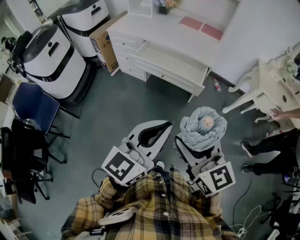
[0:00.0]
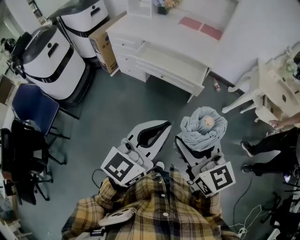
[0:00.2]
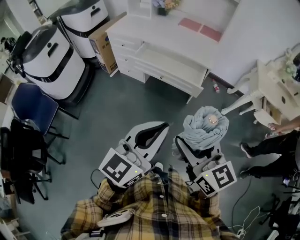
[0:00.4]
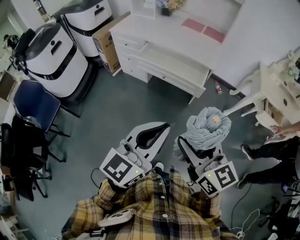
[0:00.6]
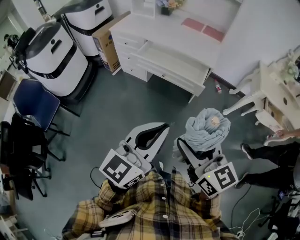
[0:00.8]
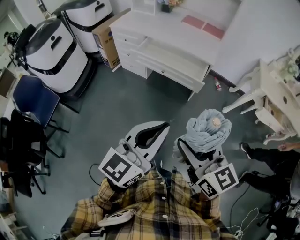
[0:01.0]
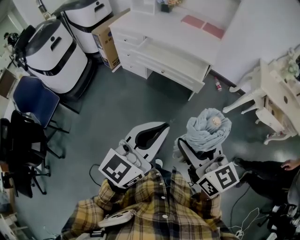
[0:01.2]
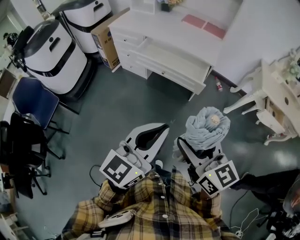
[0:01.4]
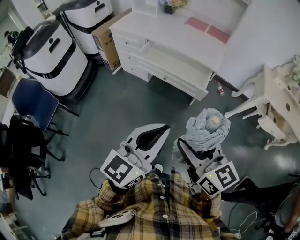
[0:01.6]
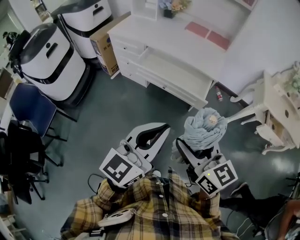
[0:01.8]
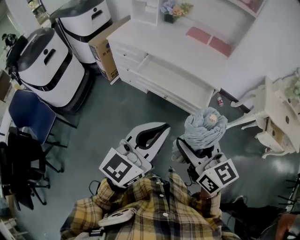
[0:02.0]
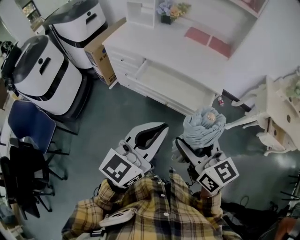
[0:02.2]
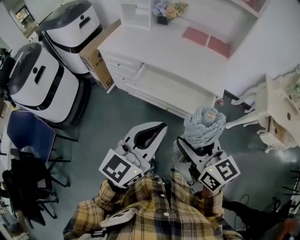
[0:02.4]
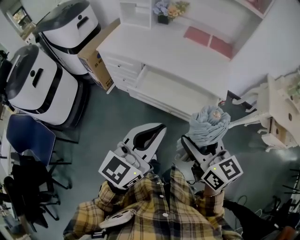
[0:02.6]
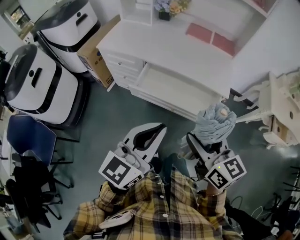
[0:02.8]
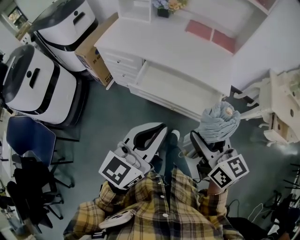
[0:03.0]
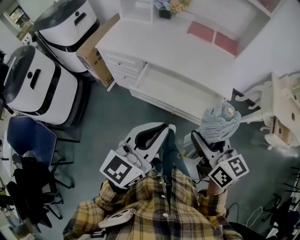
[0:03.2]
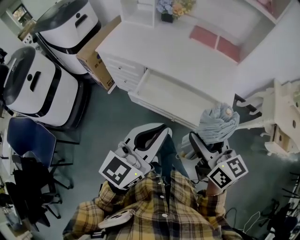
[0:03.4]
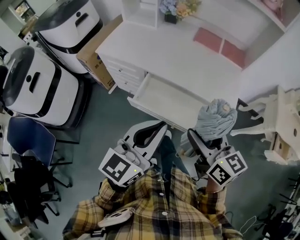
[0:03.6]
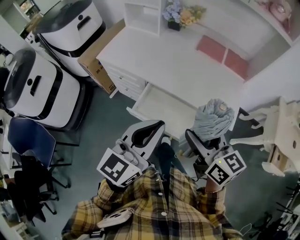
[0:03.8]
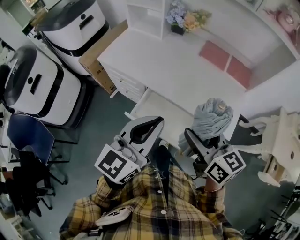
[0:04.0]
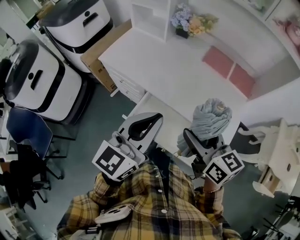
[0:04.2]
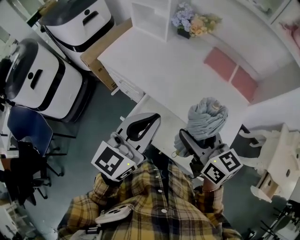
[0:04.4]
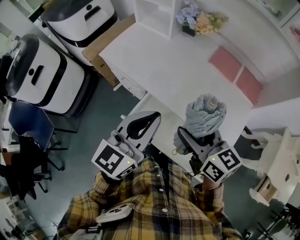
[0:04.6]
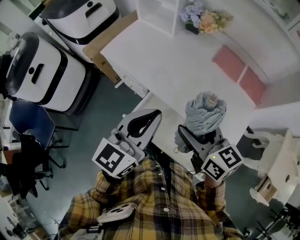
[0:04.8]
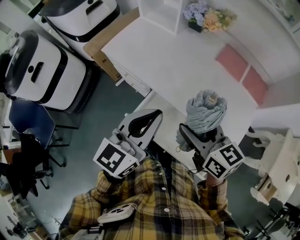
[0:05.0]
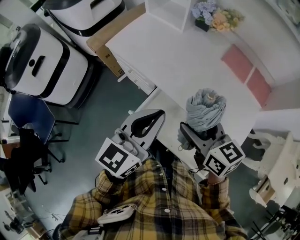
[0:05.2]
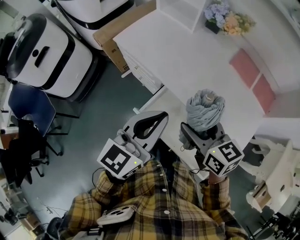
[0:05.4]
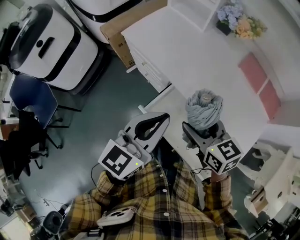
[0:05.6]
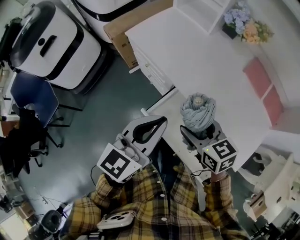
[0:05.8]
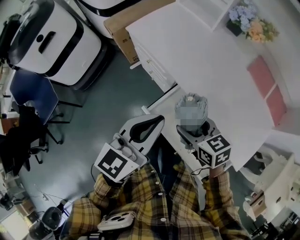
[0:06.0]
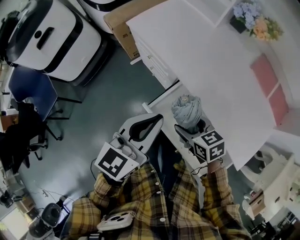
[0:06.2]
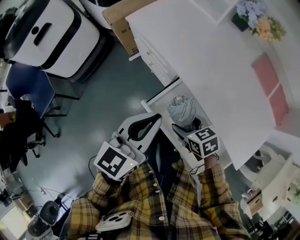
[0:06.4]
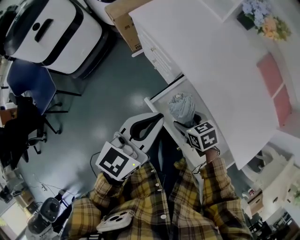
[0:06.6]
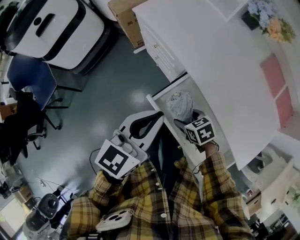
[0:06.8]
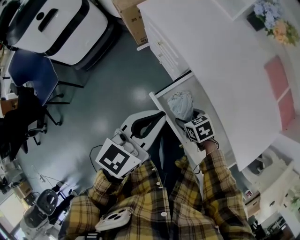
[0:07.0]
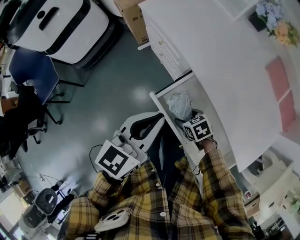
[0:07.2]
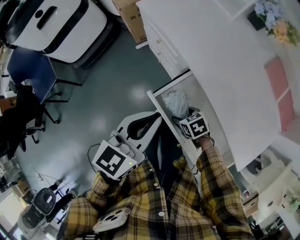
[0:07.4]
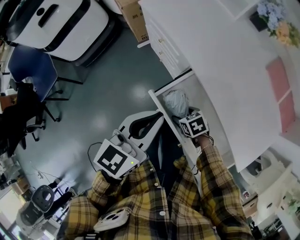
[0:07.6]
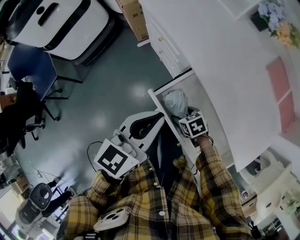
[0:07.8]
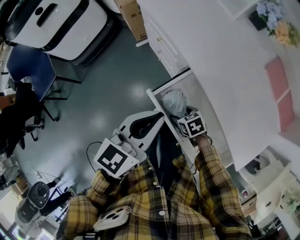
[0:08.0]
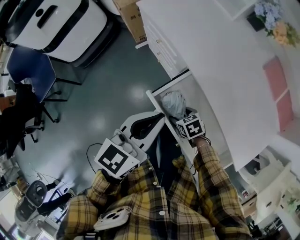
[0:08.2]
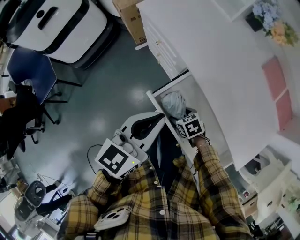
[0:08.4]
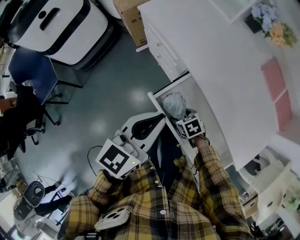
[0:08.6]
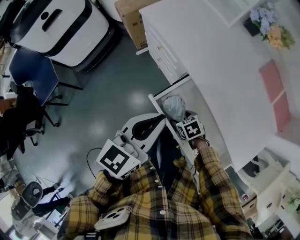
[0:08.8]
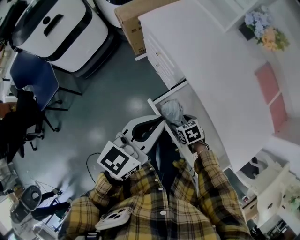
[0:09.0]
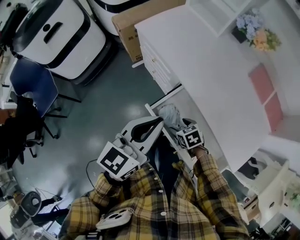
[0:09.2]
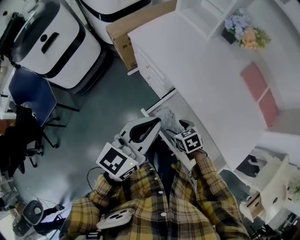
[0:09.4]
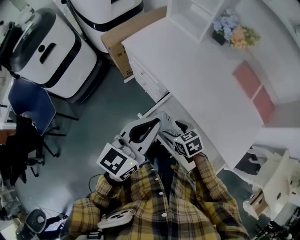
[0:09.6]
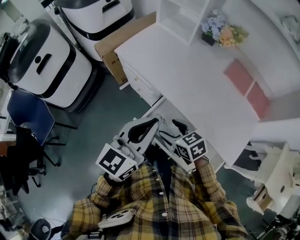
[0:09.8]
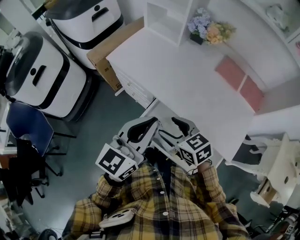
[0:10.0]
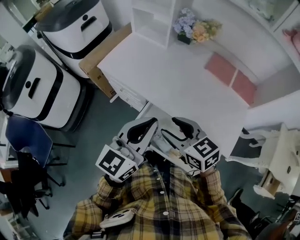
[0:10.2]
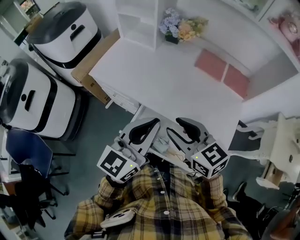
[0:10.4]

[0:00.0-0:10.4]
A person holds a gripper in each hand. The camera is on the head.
0:00.0 to 0:01.4: The grippers stay close to where they were, moving slightly.
0:01.4 to 0:03.0: The right gripper heads forward, covering some 30 cm. Meanwhile the left gripper moves forward and to the left, approximately 35 cm.
0:03.0 to 0:04.4: The two grippers go about 30 cm forward. The right gripper changes its angle by some 20 degrees.
0:04.4 to 0:06.0: The right gripper is displaced downward and to the left by roughly 20 cm, and swivels roughly 30 degrees. The left gripper heads to the left and downward, covering roughly 15 cm.
0:06.0 to 0:07.4: The right gripper shifts roughly 20 cm downward, and changes its angle by roughly 30 degrees. The left gripper goes some 5 cm downward.
0:07.4 to 0:09.0: There are only small adjustments of the grippers.
0:09.0 to 0:10.4: The left gripper changes place by roughly 15 cm, and rotates some 30 degrees. Meanwhile the right gripper travels upward by some 35 cm, points its fingers roughly 40 degrees further upward, and closes.

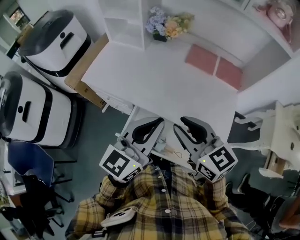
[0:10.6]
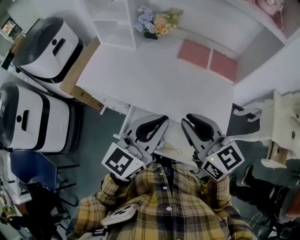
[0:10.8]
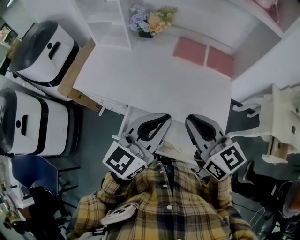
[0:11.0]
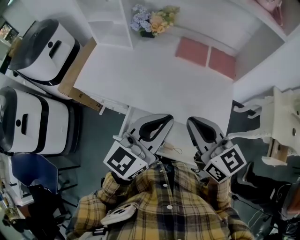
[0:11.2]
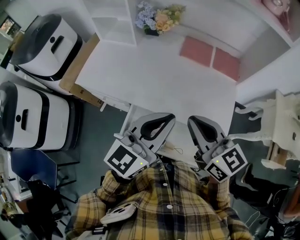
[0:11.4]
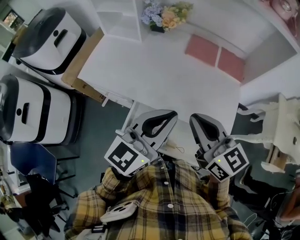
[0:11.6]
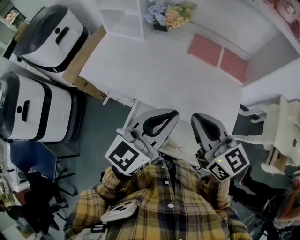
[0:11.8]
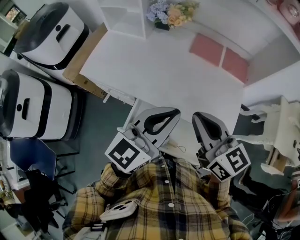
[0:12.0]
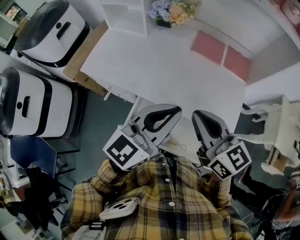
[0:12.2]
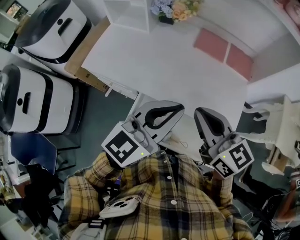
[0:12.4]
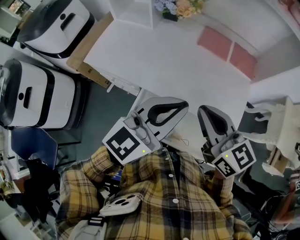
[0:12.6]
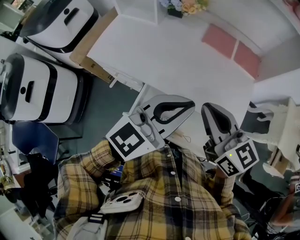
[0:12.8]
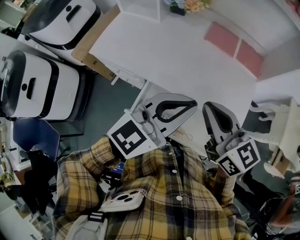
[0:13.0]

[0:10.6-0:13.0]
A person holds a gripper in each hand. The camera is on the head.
0:11.8 to 0:13.0: There are only small adjustments of the grippers.

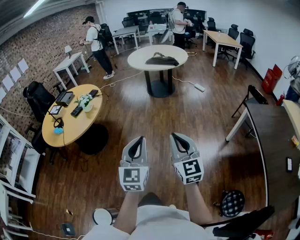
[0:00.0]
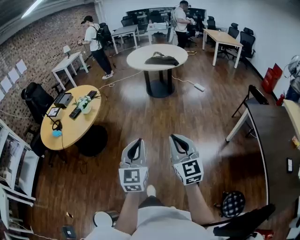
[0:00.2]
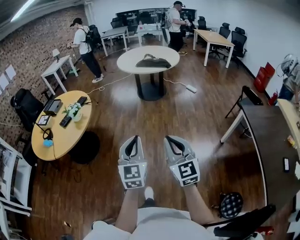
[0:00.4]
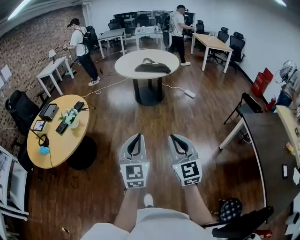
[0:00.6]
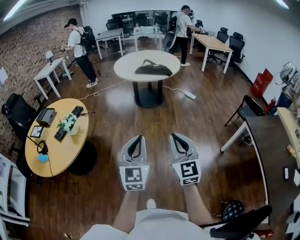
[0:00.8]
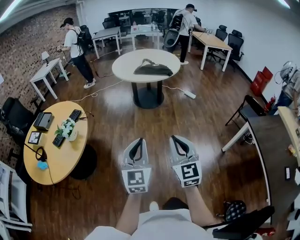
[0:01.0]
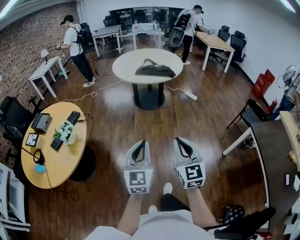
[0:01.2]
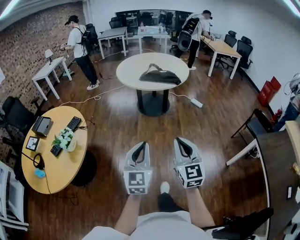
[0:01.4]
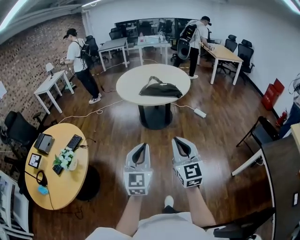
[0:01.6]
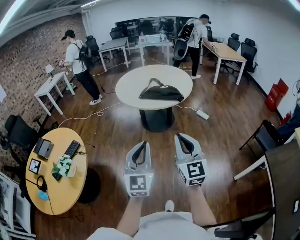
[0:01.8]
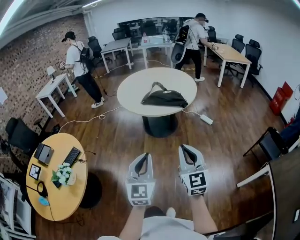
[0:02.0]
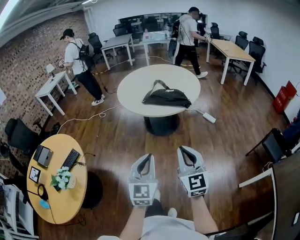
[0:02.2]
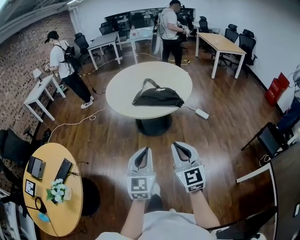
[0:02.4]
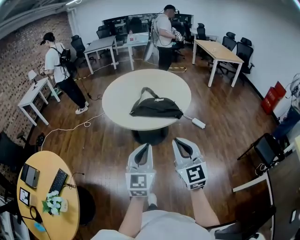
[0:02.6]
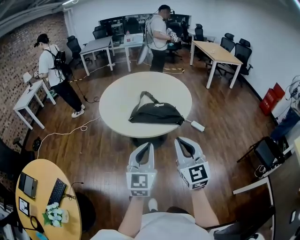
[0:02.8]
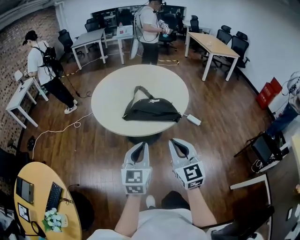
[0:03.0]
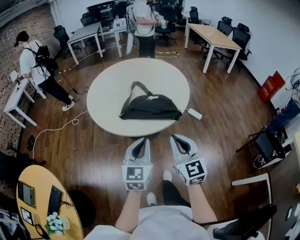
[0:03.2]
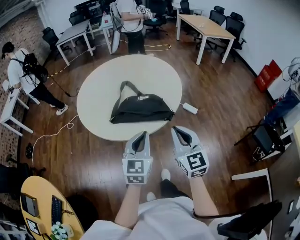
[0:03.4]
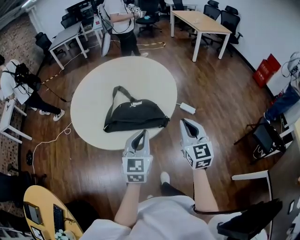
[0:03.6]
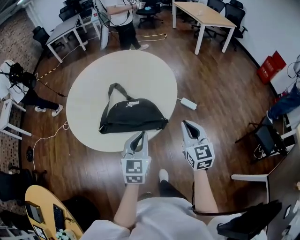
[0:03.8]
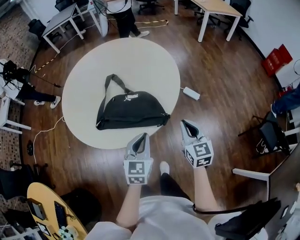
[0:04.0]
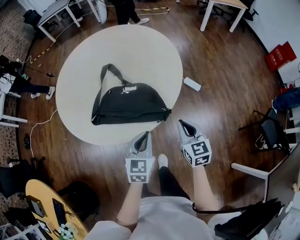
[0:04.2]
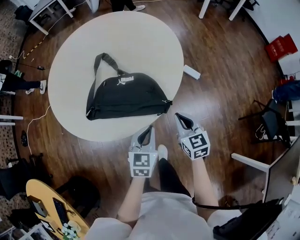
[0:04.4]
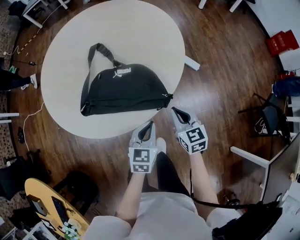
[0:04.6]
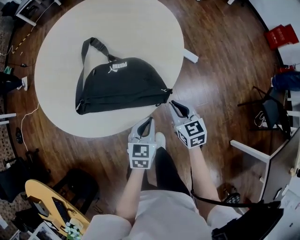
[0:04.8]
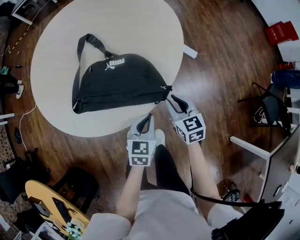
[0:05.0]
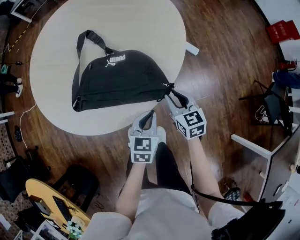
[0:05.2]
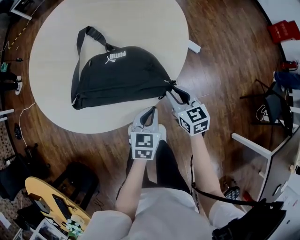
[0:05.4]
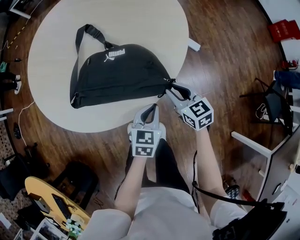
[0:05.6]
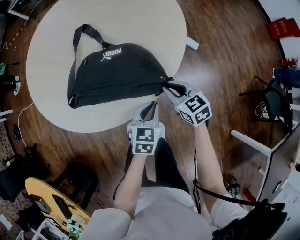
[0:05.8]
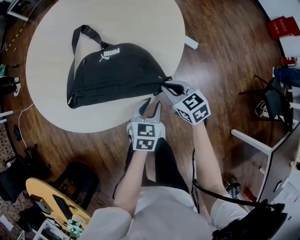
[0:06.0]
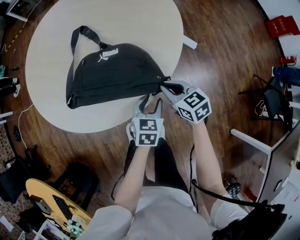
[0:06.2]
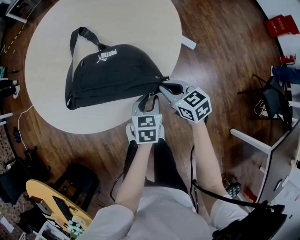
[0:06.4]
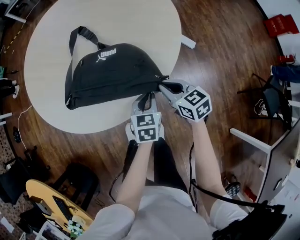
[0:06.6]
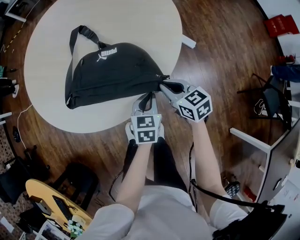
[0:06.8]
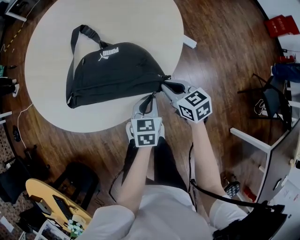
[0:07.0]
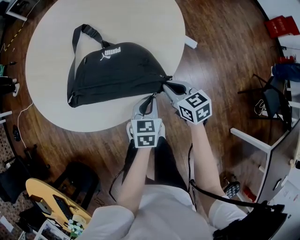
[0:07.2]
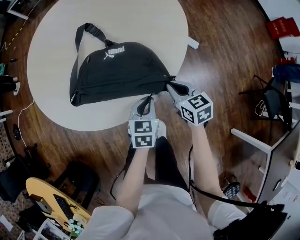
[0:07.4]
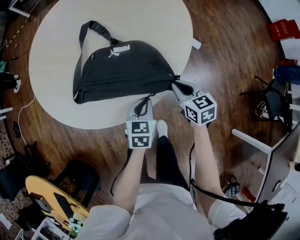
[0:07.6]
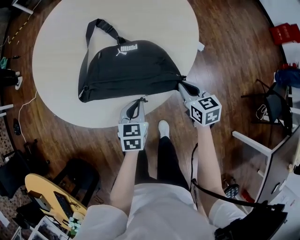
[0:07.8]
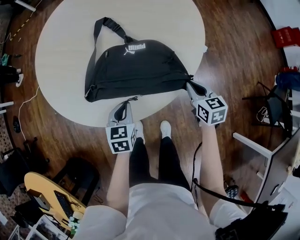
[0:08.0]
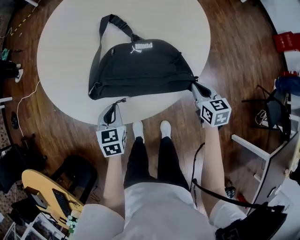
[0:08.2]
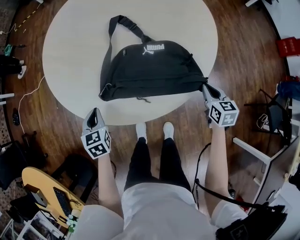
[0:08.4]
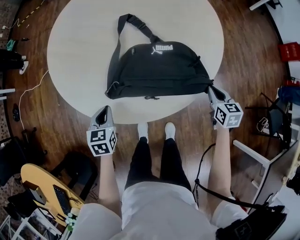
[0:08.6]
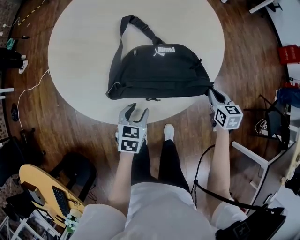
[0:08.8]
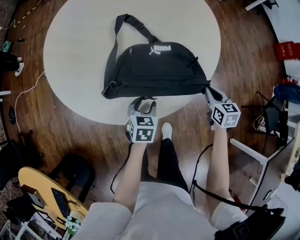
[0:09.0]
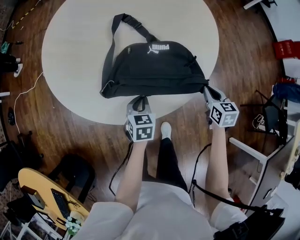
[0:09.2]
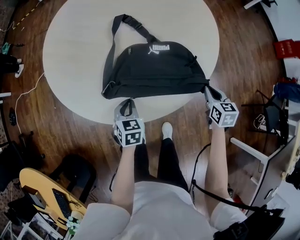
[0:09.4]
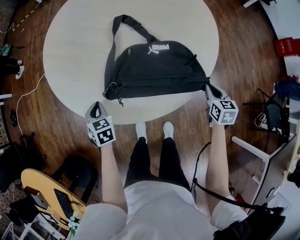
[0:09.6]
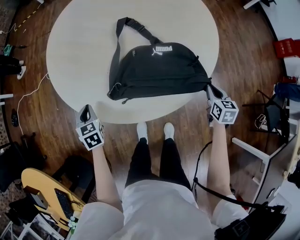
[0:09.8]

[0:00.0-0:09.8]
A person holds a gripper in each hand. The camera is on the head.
0:00.0 to 0:01.4: The pair of grippers is taken forward, roughly 40 cm.
0:01.4 to 0:02.8: The pair of grippers is taken forward, roughly 50 cm.
0:02.8 to 0:04.2: Both grippers move forward, downward and to the right, approximately 40 cm. The left gripper swivels about 30 degrees. The right gripper rotates about 30 degrees.
0:04.2 to 0:05.6: Both grippers travel together downward, about 15 cm. The right gripper opens up.
0:05.6 to 0:07.0: The left gripper opens, then closes once more.
0:07.0 to 0:08.4: The right gripper swivels about 20 degrees. Meanwhile the left gripper moves to the left, approximately 40 cm, and turns by approximately 30 degrees.
0:08.4 to 0:09.8: The left gripper goes to the right and returns, approximately 20 cm each way, and opens, then closes once more.

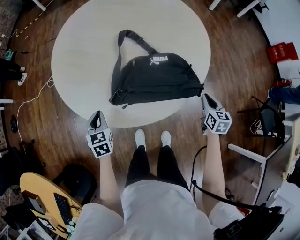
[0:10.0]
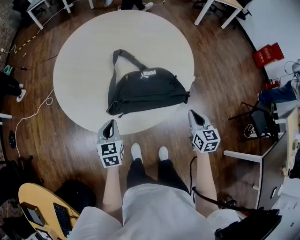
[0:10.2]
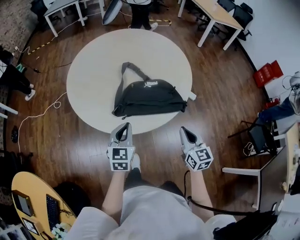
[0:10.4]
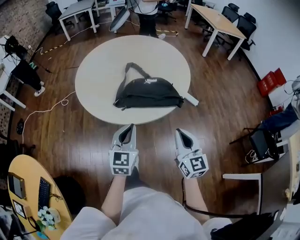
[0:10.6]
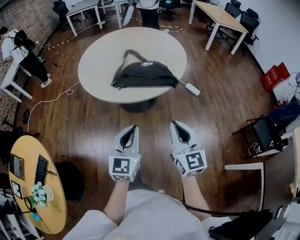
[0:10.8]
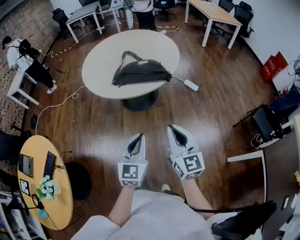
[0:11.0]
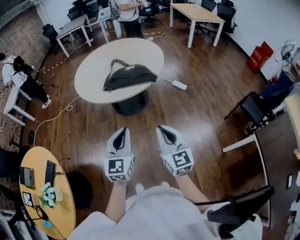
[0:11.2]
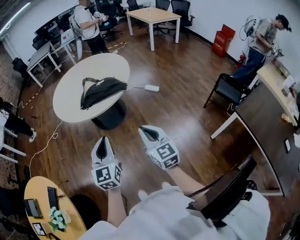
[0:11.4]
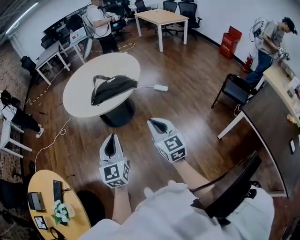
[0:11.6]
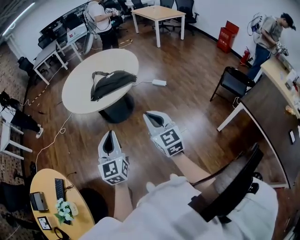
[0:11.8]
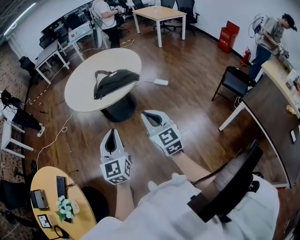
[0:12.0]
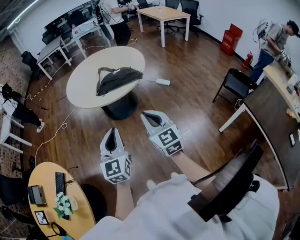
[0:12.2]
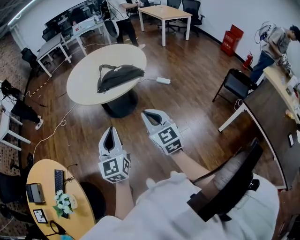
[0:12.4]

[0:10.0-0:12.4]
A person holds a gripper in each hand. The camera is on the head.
0:10.0 to 0:11.2: The left gripper is displaced backward, to the right and upward by roughly 60 cm, and points its fingers some 30 degrees further upward. The right gripper travels backward and upward by some 60 cm, and tips its fingers upward by approximately 40 degrees.
0:11.2 to 0:12.4: The left gripper moves backward, to the left and upward, roughly 15 cm. The right gripper is displaced to the left and backward by some 15 cm.
